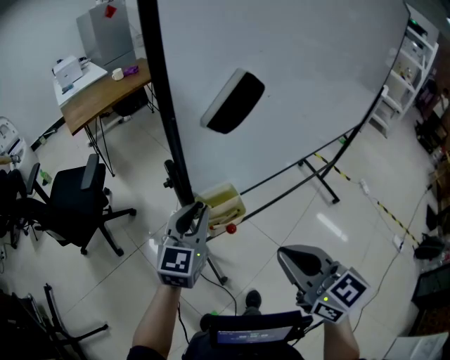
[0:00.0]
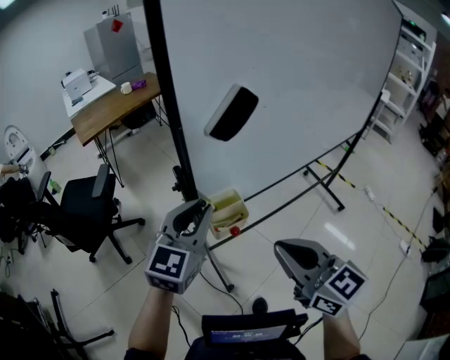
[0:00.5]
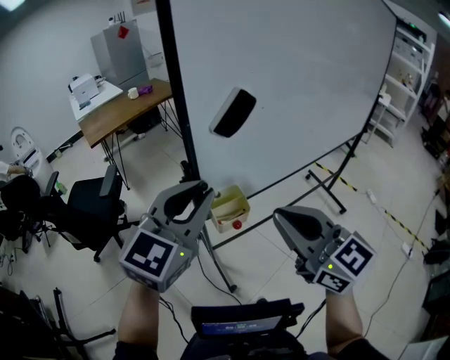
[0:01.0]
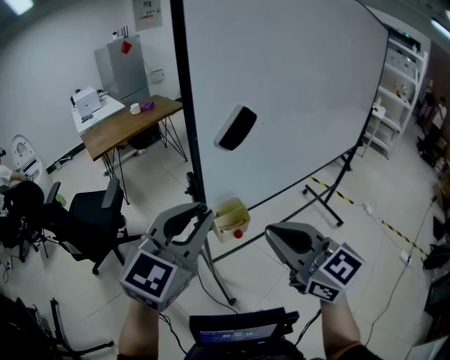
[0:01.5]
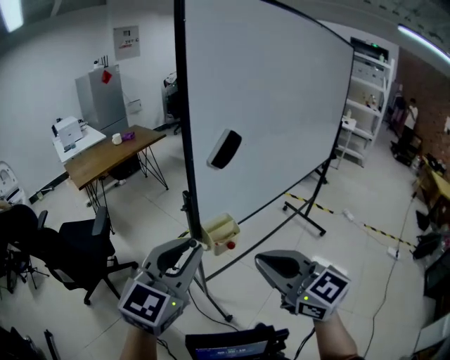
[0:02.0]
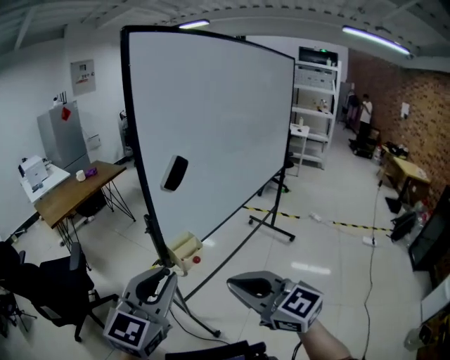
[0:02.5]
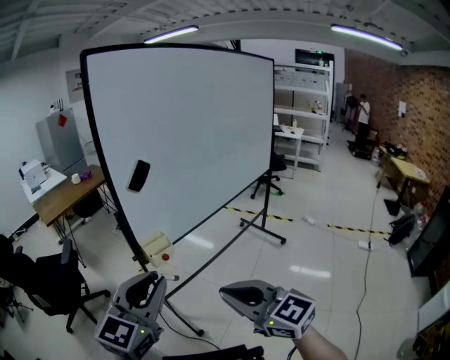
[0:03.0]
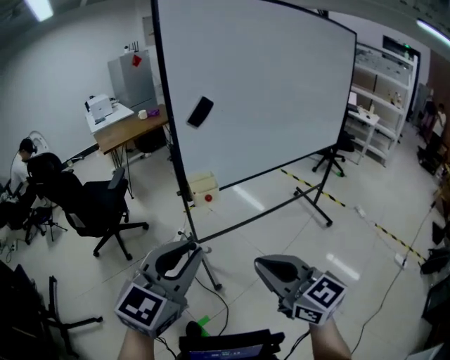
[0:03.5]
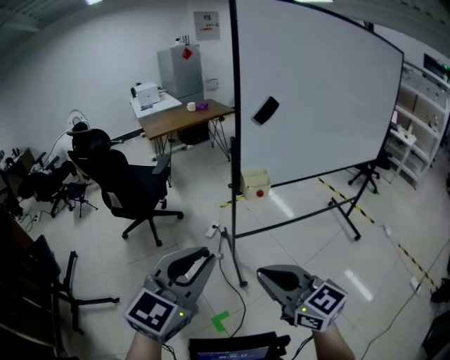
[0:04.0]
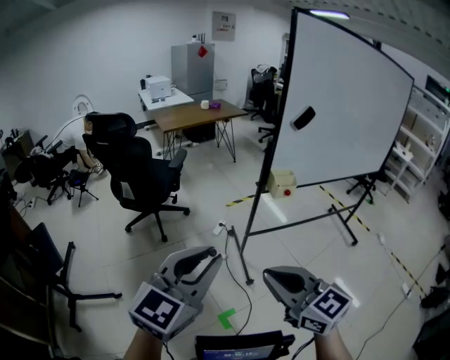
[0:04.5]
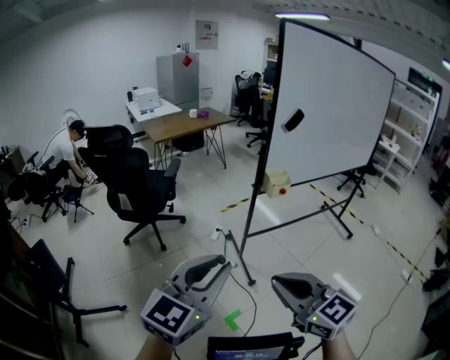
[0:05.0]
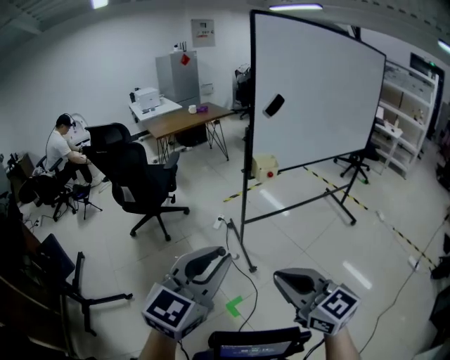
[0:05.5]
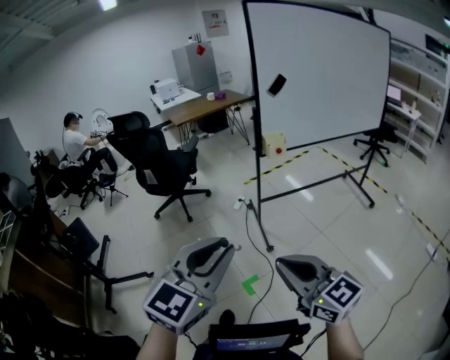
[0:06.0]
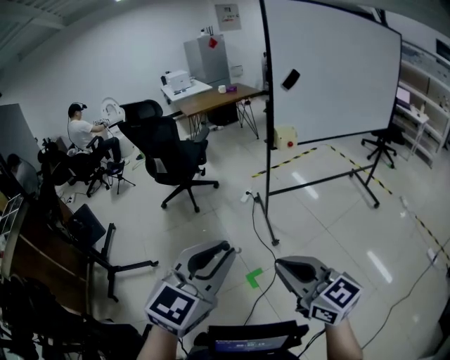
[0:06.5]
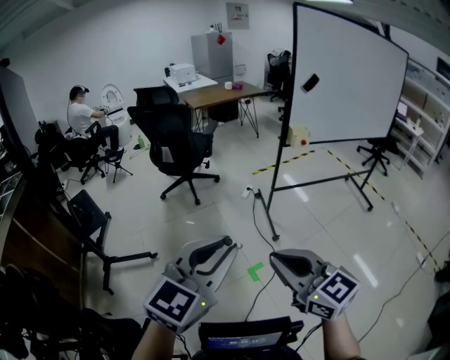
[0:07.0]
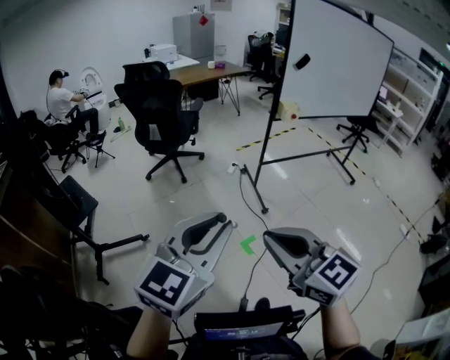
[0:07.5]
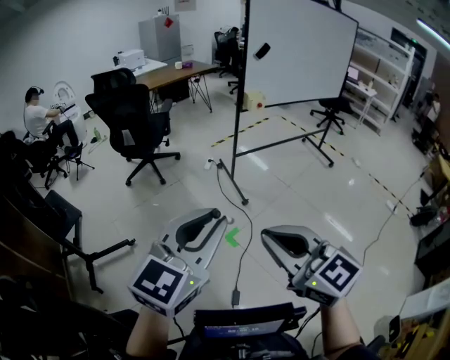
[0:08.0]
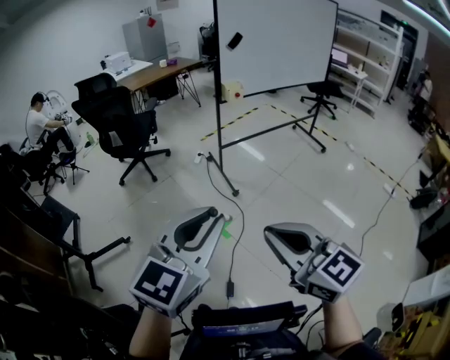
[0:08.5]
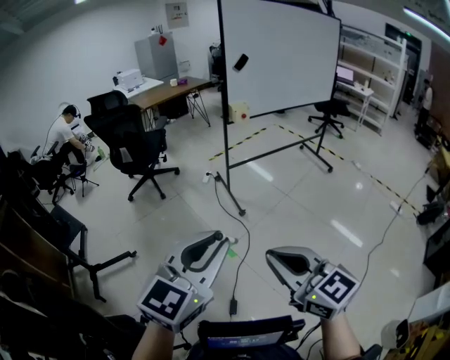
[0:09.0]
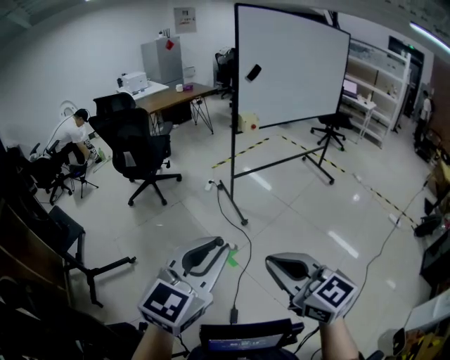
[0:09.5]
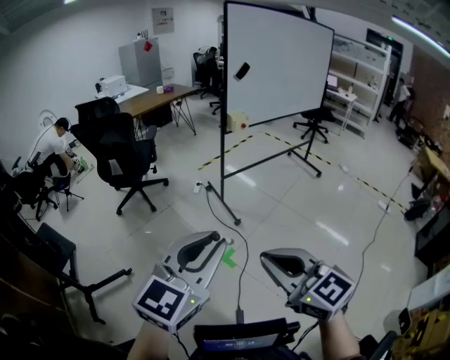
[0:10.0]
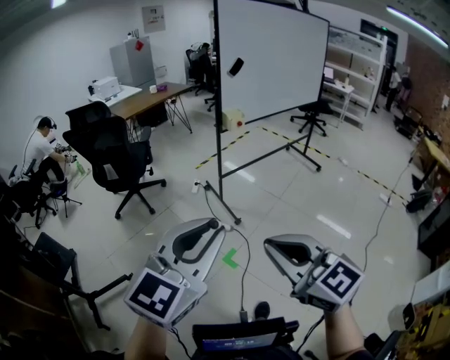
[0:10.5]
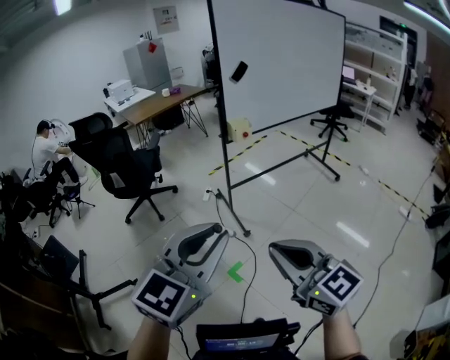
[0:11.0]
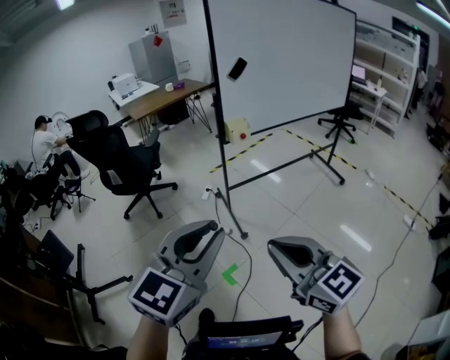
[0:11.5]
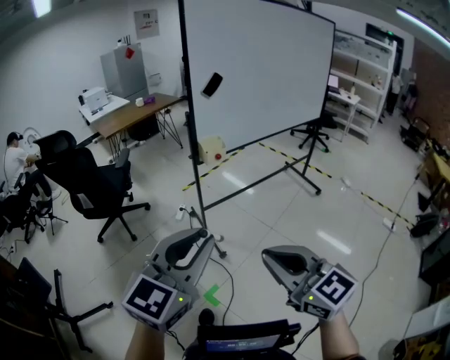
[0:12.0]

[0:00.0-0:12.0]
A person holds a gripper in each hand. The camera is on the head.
0:00.0 to 0:02.0: The left gripper shifts approximately 25 cm upward and backward, and turns by approximately 20 degrees; the right gripper travels upward, to the left and backward by roughly 15 cm.
0:02.0 to 0:04.0: Both grippers move backward, approximately 25 cm. The right gripper turns by about 20 degrees.
0:04.0 to 0:06.0: Both grippers move backward, approximately 25 cm.
0:06.0 to 0:08.0: The two grippers go roughly 25 cm to the left and backward.
0:08.0 to 0:10.0: The left gripper goes to the right and returns, about 10 cm each way. Meanwhile the right gripper reaches some 10 cm to the right, then returns.
0:10.0 to 0:12.0: Both grippers travel together forward and to the right, some 35 cm.

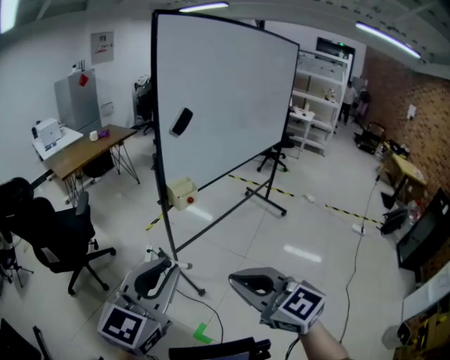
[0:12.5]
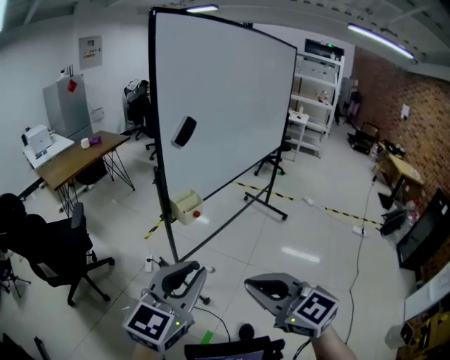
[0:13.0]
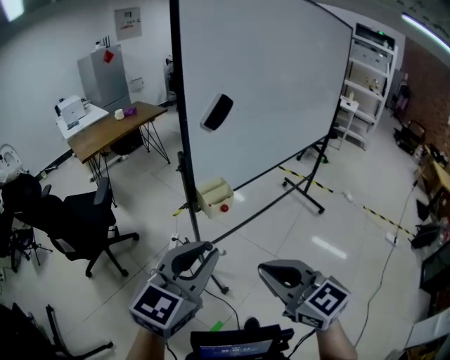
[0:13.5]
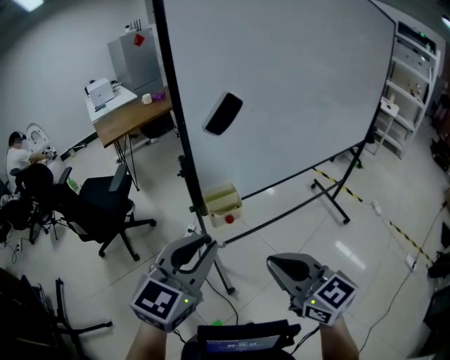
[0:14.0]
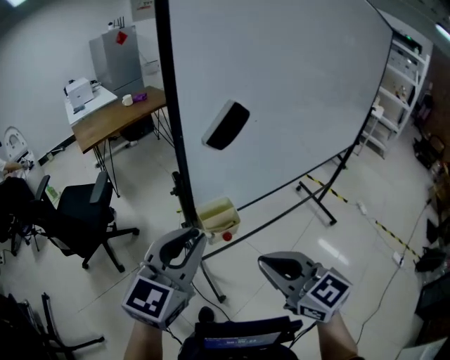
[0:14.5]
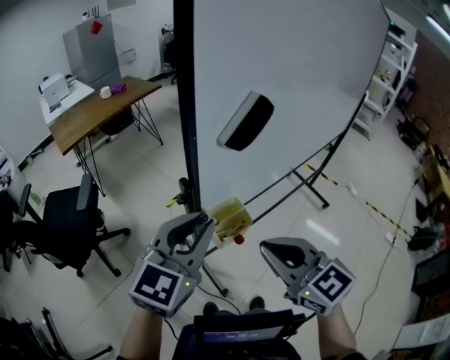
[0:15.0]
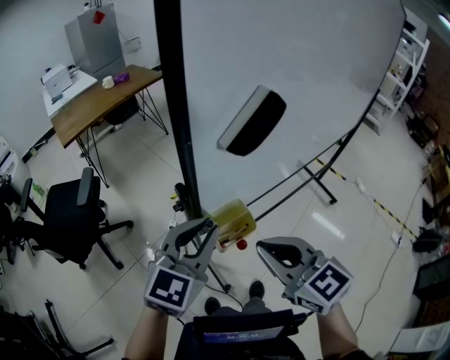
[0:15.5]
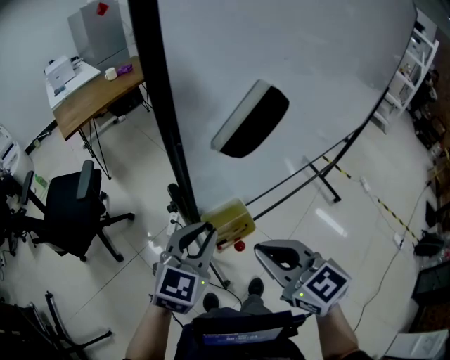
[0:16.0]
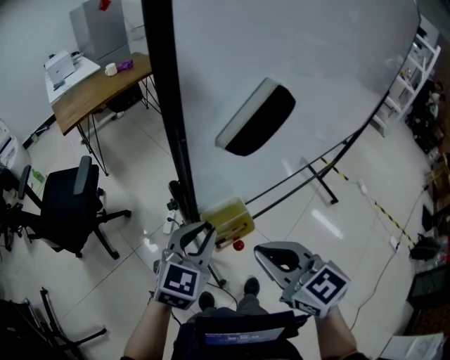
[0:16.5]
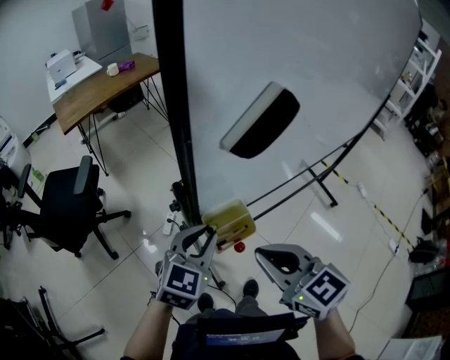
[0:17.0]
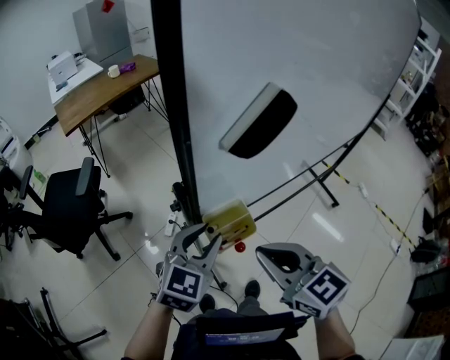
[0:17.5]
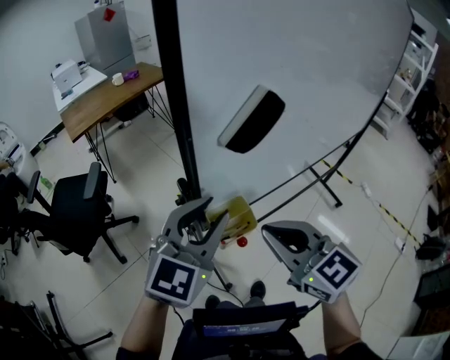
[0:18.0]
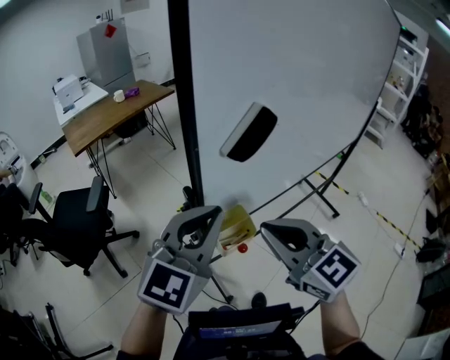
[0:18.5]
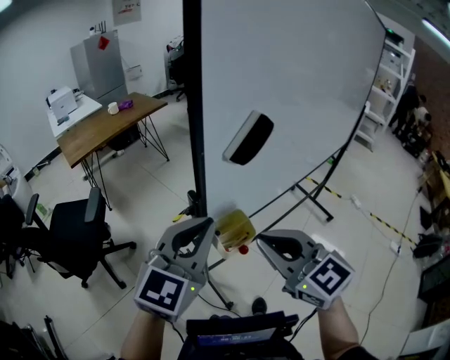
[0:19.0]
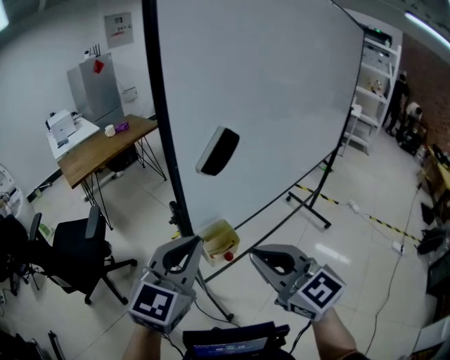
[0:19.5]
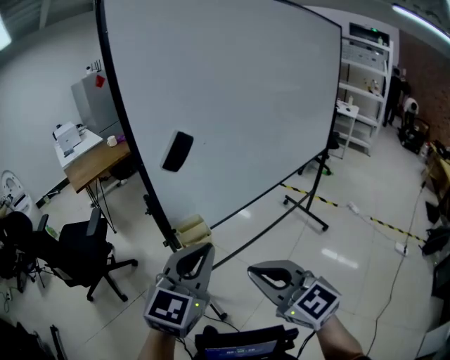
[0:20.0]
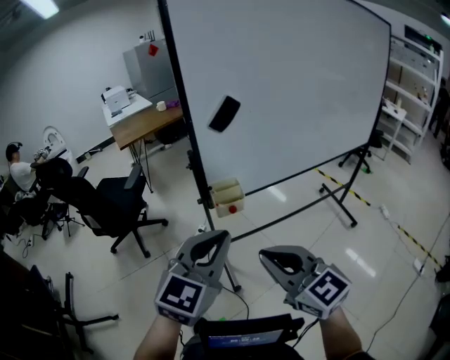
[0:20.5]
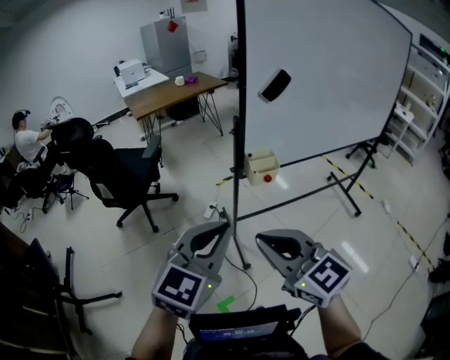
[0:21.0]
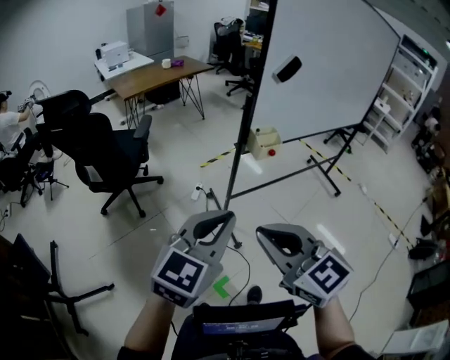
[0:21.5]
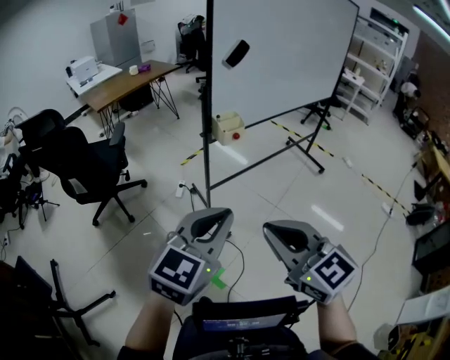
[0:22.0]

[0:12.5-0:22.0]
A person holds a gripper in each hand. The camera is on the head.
0:12.5 to 0:14.5: Both grippers travel together forward, approximately 35 cm.
0:14.5 to 0:16.5: The right gripper moves forward and downward, roughly 10 cm, while the left gripper travels downward and forward by roughly 20 cm.
0:16.5 to 0:18.0: The right gripper moves upward, about 5 cm. The left gripper moves upward, about 15 cm.
0:18.0 to 0:20.0: Both grippers travel together backward and to the right, roughly 20 cm. The left gripper closes up.
0:20.0 to 0:22.0: The grippers both shift backward and to the left by about 35 cm.

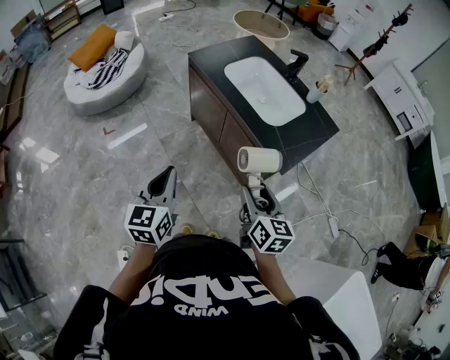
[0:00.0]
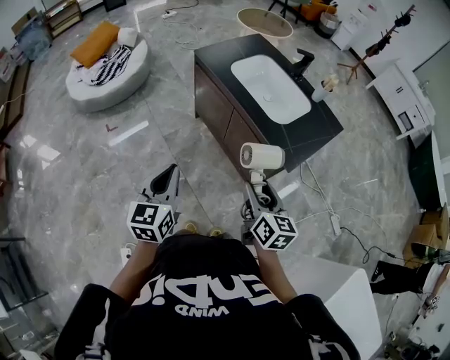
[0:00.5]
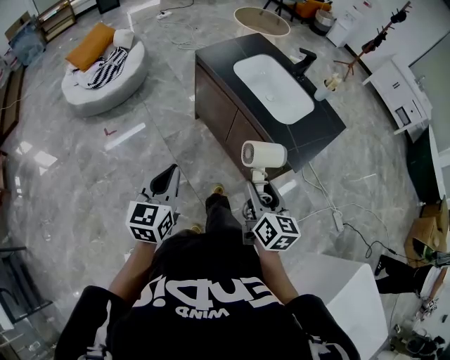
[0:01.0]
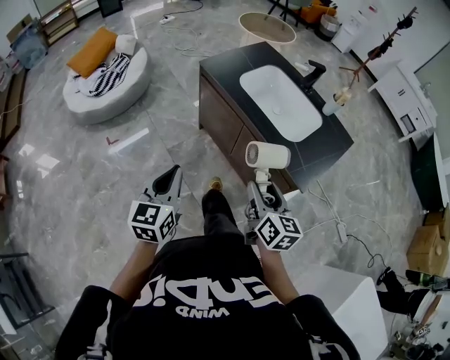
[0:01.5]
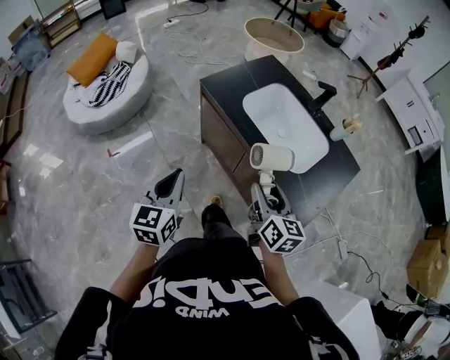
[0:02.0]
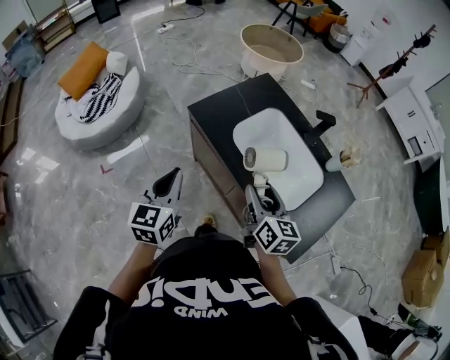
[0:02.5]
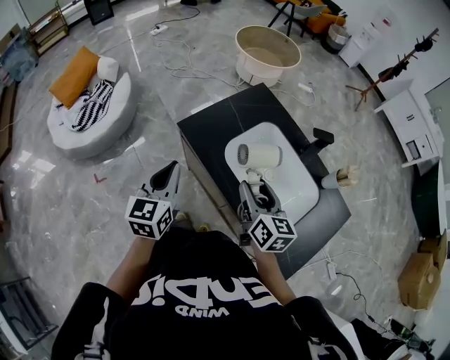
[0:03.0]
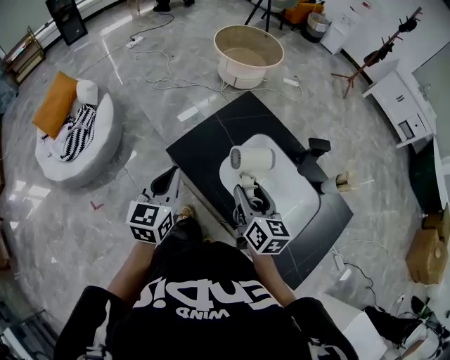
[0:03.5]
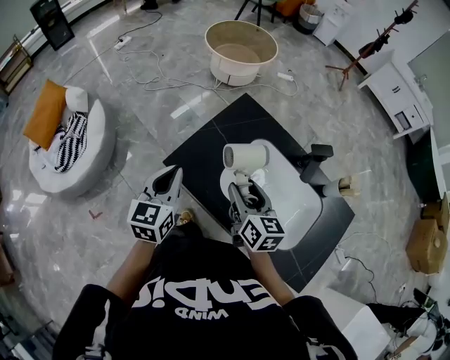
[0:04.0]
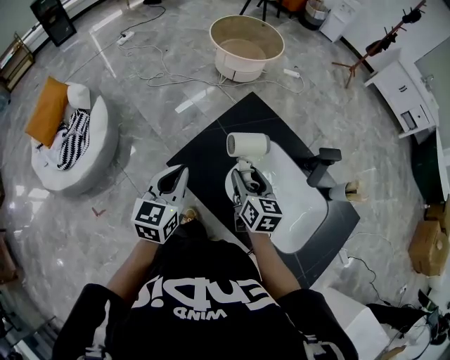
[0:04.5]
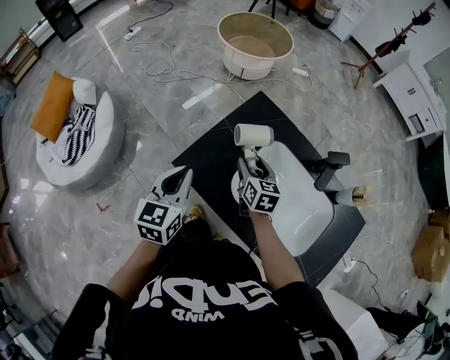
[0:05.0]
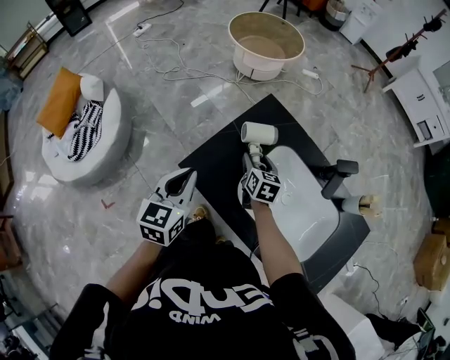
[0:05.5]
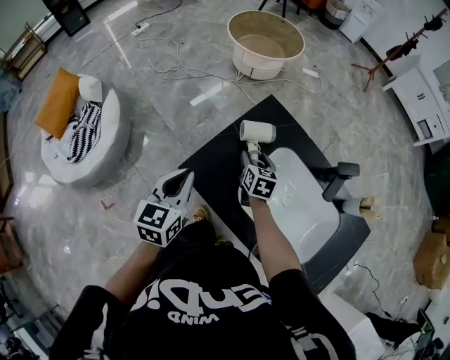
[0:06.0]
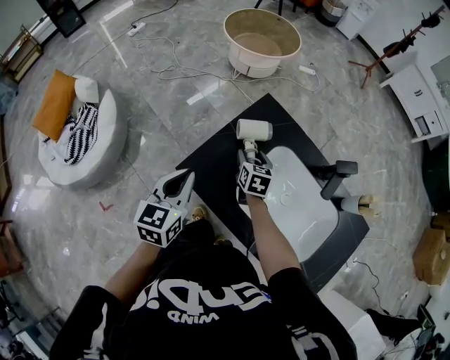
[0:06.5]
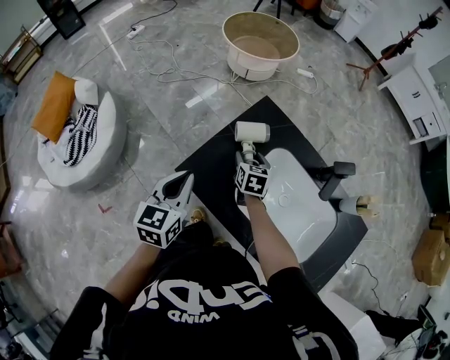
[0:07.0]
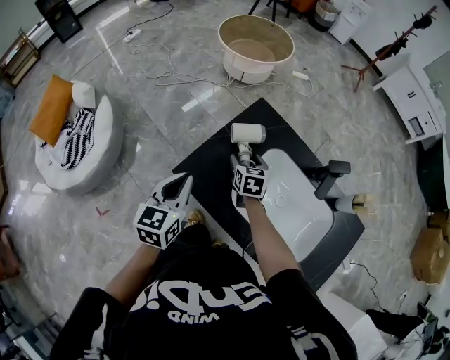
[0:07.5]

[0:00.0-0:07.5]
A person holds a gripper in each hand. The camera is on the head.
0:00.0 to 0:02.0: The grippers both shift forward by roughly 20 cm.
0:02.0 to 0:04.0: Both grippers travel together forward, some 40 cm.
0:04.0 to 0:05.5: The right gripper moves forward and downward, some 20 cm.
0:05.5 to 0:07.5: There are only small adjustments of the grippers.
